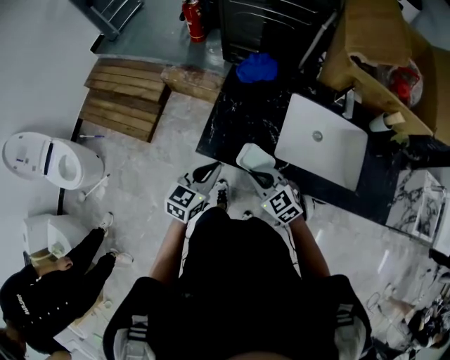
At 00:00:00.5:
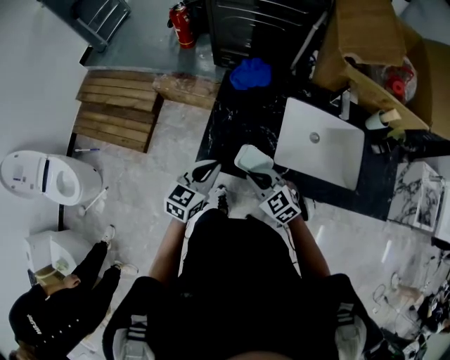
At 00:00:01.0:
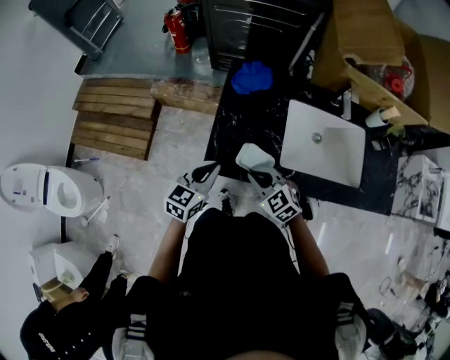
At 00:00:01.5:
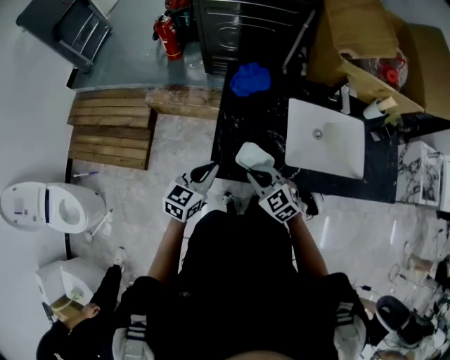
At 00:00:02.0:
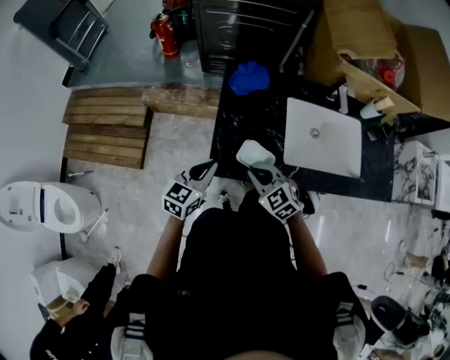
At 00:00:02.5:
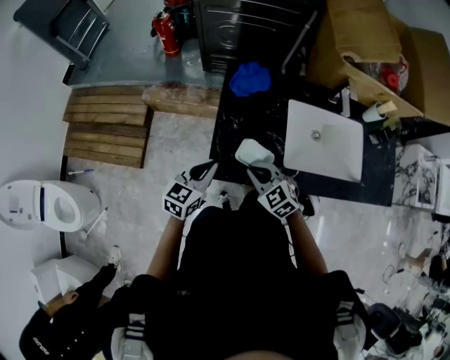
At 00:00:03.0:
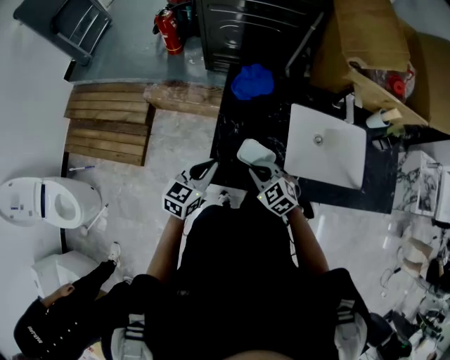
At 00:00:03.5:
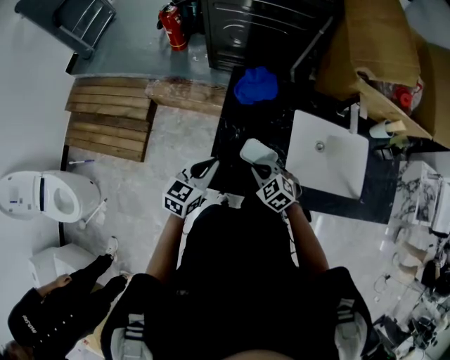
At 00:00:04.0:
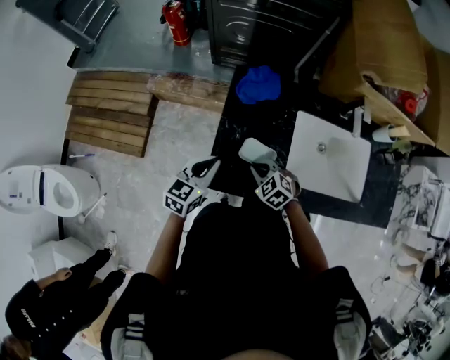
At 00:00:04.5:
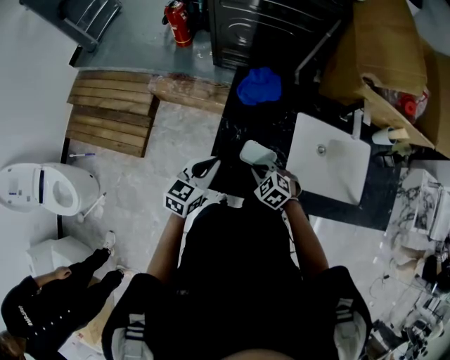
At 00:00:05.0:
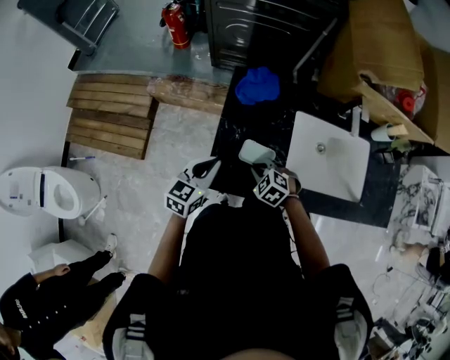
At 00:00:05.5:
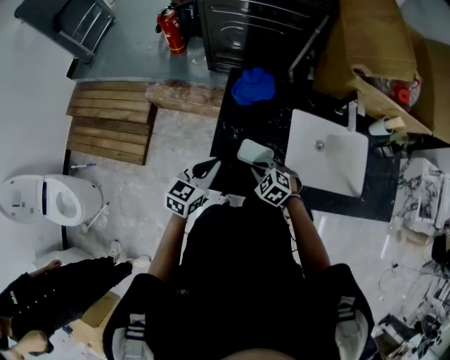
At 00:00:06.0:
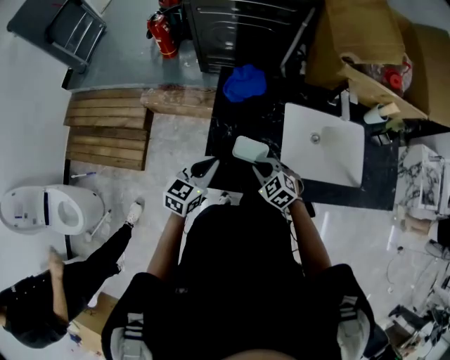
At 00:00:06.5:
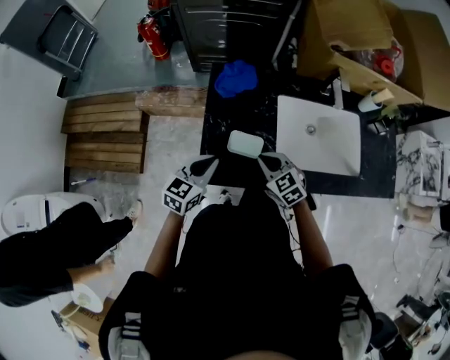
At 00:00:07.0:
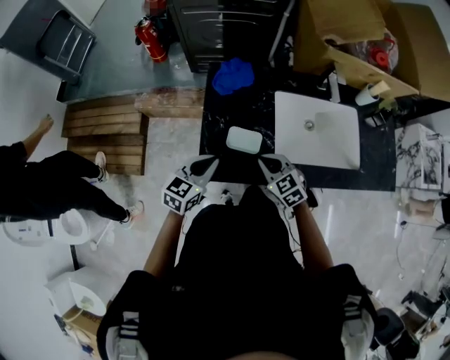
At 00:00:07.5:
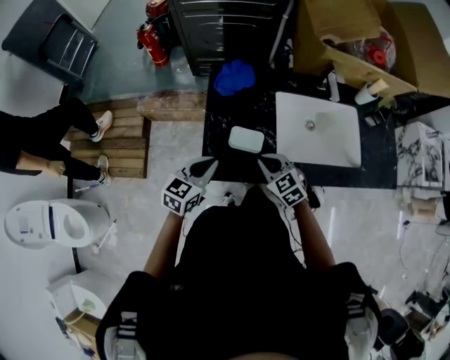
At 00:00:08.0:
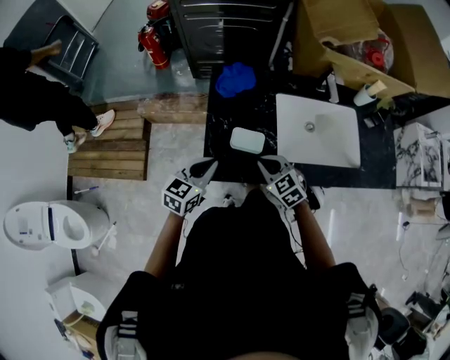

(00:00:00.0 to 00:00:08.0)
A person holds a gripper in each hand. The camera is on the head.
00:00:00.0 - 00:00:02.0: The grippers both shift forward and to the left by approximately 10 cm.
00:00:02.0 - 00:00:04.0: The right gripper travels downward and forward by some 10 cm. Meanwhile the left gripper heads forward, covering about 5 cm.
00:00:04.0 - 00:00:06.0: The grippers stay close to where they were, moving slightly.
00:00:06.0 - 00:00:08.0: The right gripper heads upward, covering roughly 5 cm.

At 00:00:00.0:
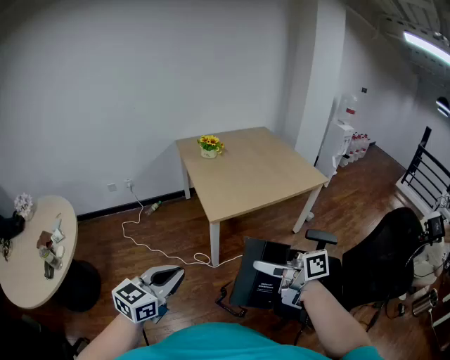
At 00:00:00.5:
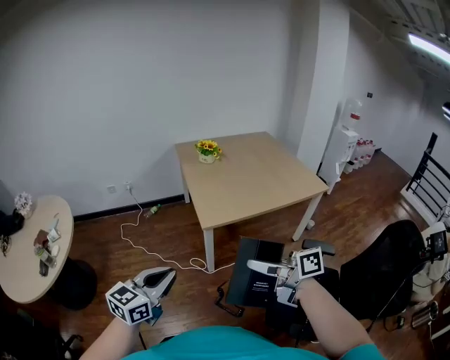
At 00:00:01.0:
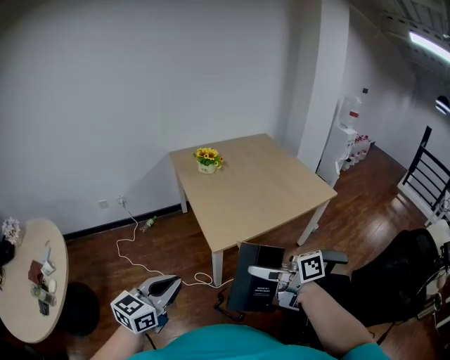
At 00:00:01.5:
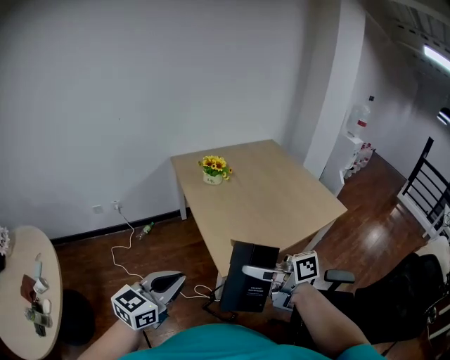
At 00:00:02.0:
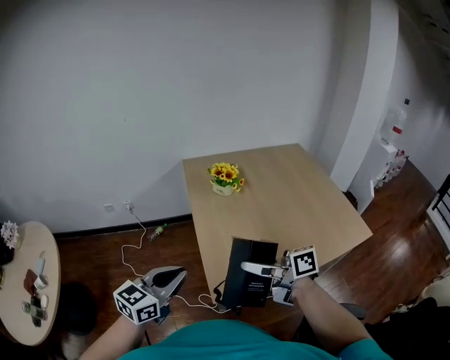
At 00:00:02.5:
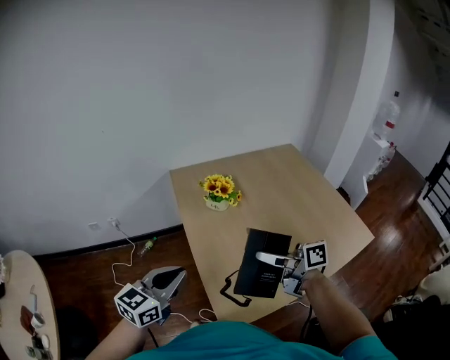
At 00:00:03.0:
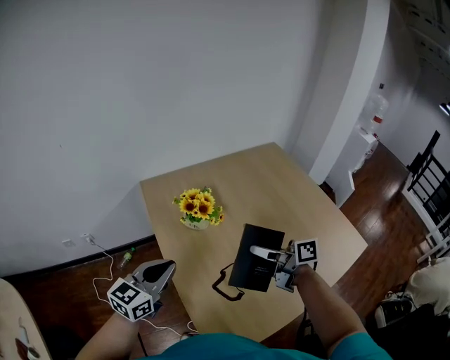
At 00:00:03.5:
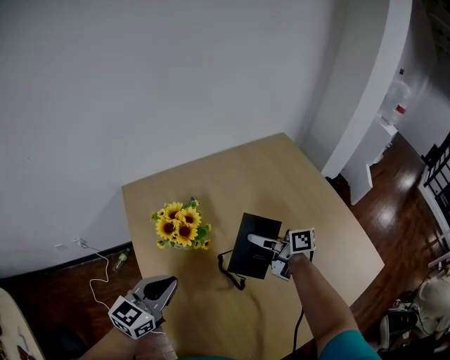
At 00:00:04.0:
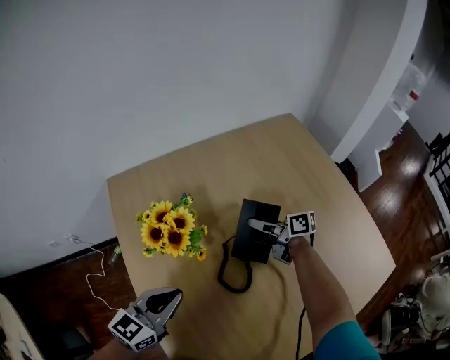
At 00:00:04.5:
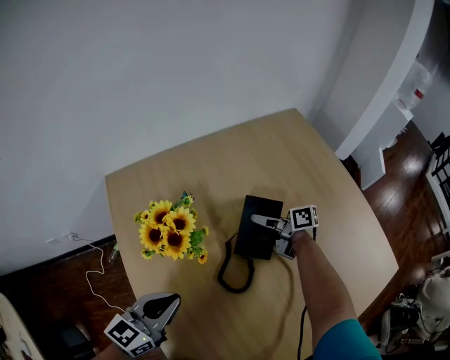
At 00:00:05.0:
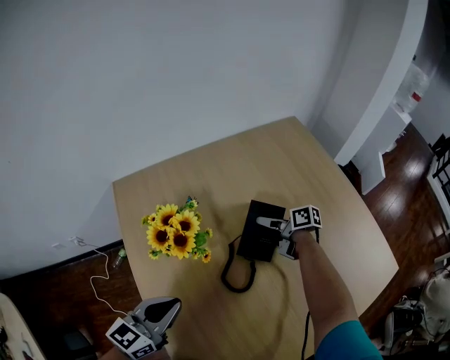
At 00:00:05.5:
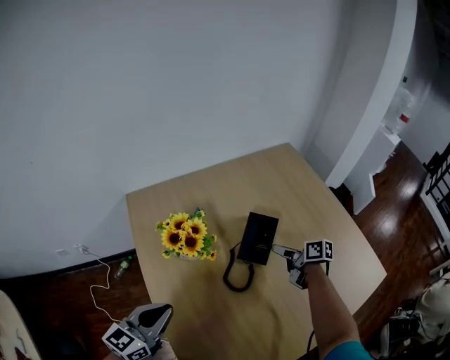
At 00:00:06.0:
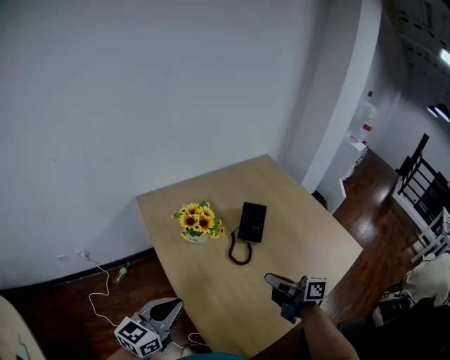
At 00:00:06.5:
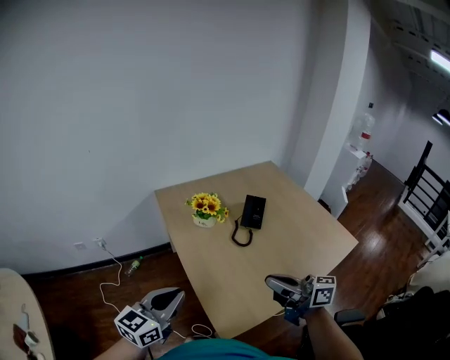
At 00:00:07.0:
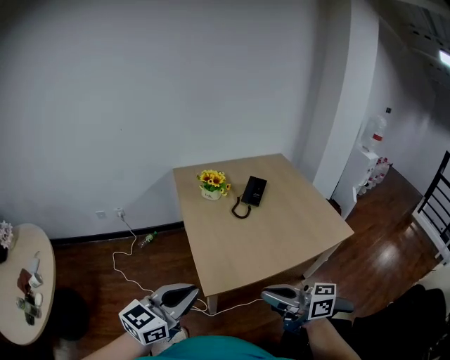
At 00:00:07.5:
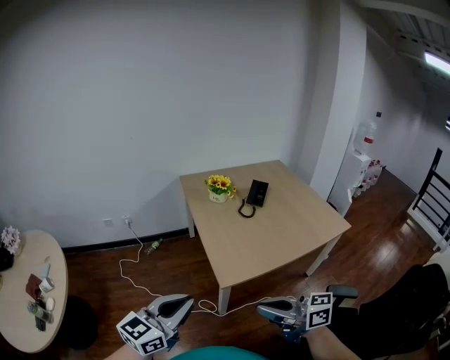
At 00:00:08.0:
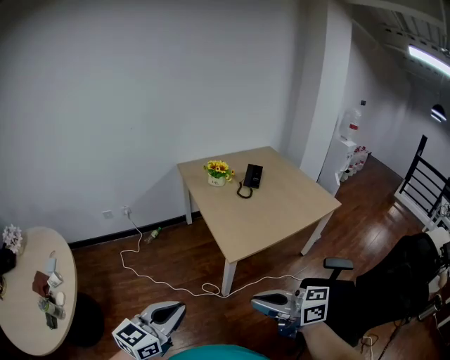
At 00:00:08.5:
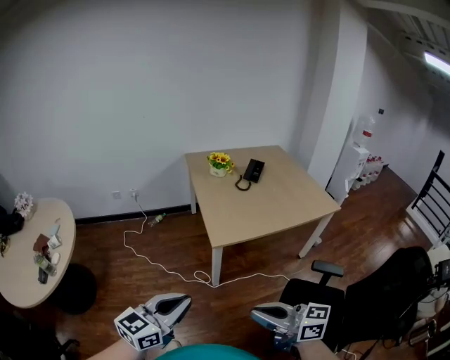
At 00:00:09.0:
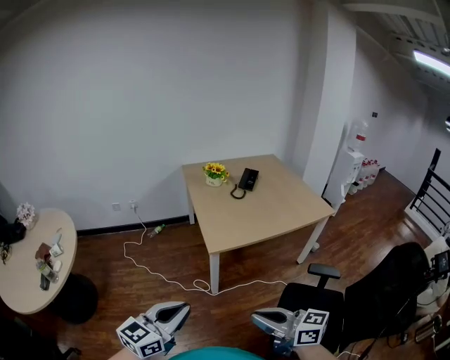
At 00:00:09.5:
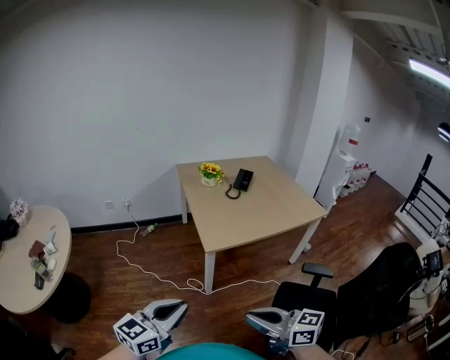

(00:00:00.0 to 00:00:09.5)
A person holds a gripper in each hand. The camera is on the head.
00:00:00.0 - 00:00:02.0: Both grippers are carried forward, roughly 40 cm.
00:00:02.0 - 00:00:04.0: The pair of grippers is taken forward and to the right, some 50 cm. The right gripper heads downward, covering approximately 25 cm, and turns by approximately 30 degrees.
00:00:04.0 - 00:00:05.5: The right gripper travels backward and to the right by about 10 cm, turns by roughly 20 degrees, and opens; the left gripper travels upward, backward and to the left by roughly 10 cm.
00:00:05.5 - 00:00:07.5: Both grippers are carried backward, some 70 cm. The right gripper rotates roughly 50 degrees, and closes.
00:00:07.5 - 00:00:09.5: The two grippers go about 25 cm backward.

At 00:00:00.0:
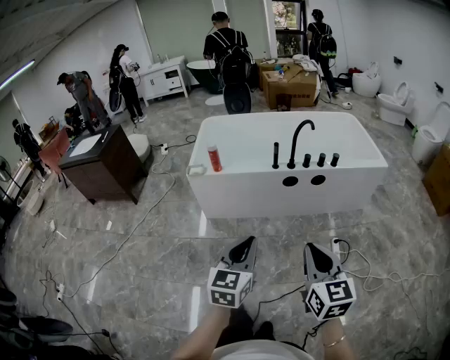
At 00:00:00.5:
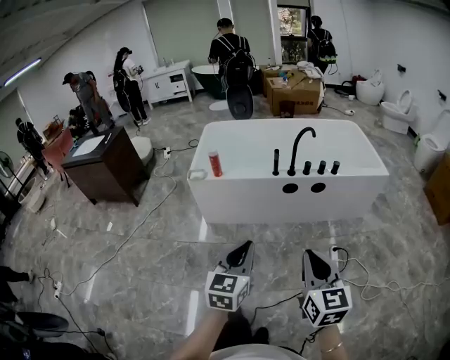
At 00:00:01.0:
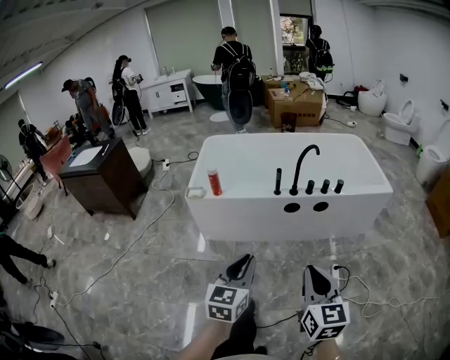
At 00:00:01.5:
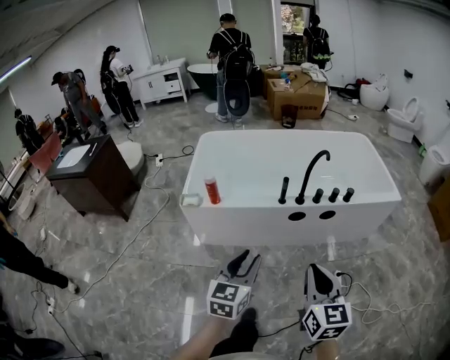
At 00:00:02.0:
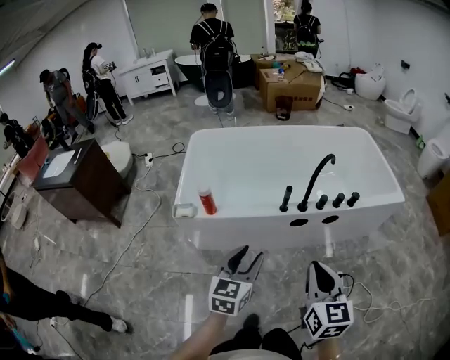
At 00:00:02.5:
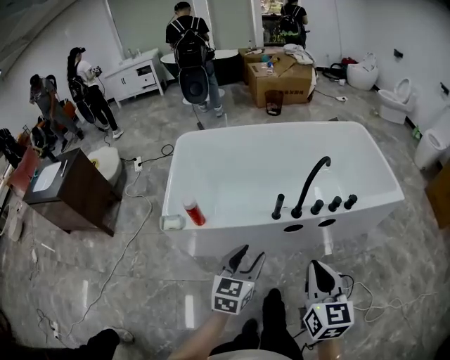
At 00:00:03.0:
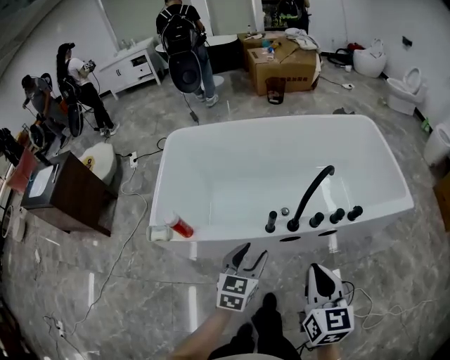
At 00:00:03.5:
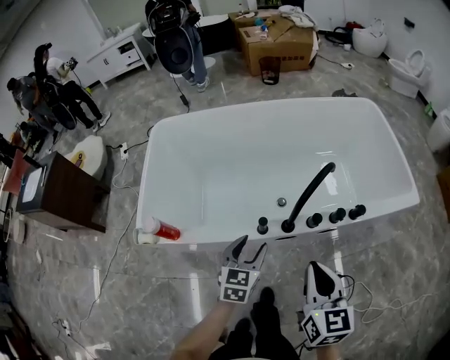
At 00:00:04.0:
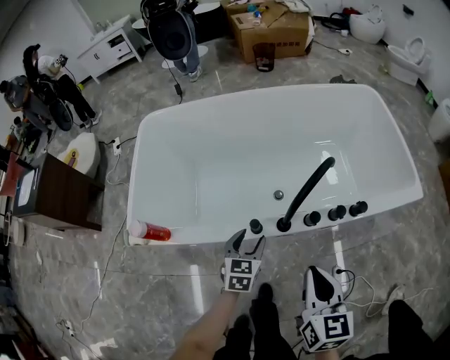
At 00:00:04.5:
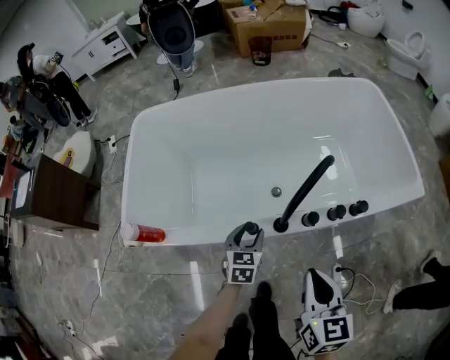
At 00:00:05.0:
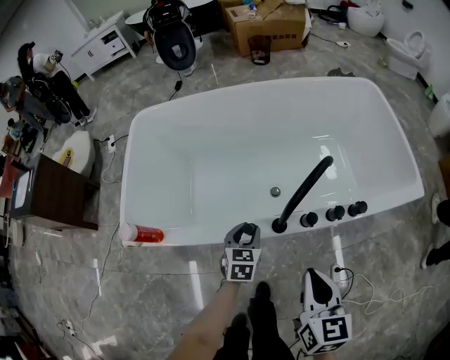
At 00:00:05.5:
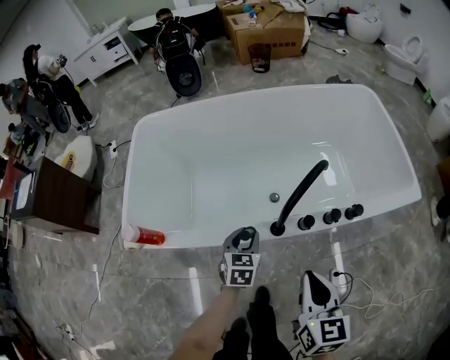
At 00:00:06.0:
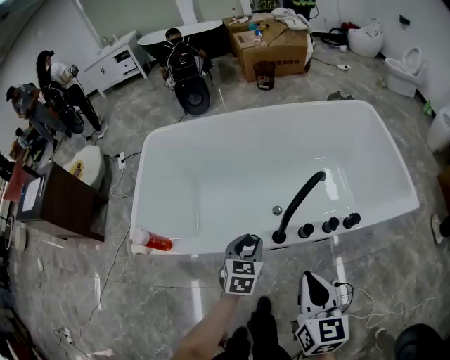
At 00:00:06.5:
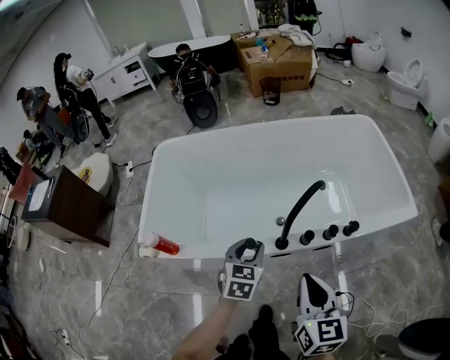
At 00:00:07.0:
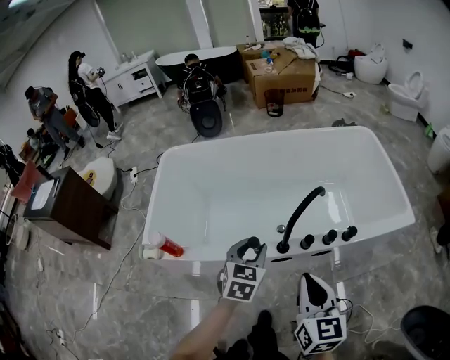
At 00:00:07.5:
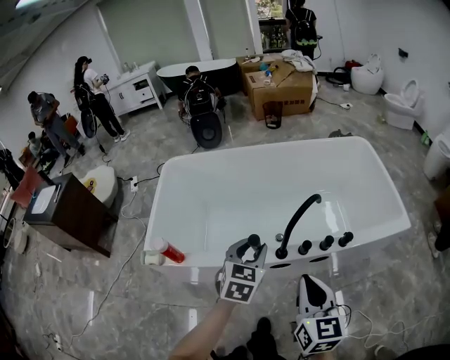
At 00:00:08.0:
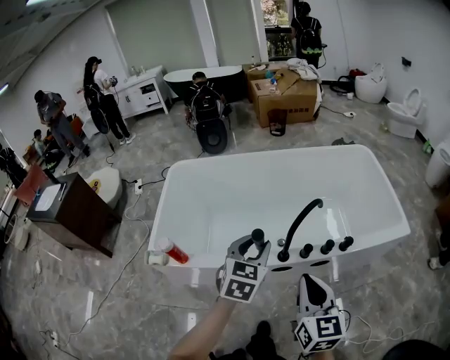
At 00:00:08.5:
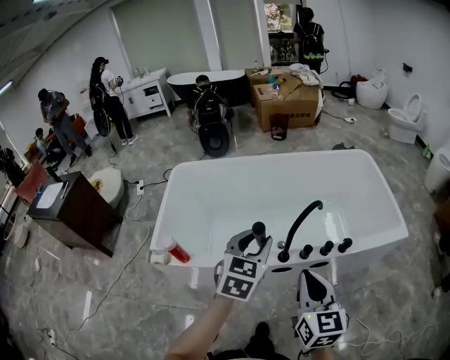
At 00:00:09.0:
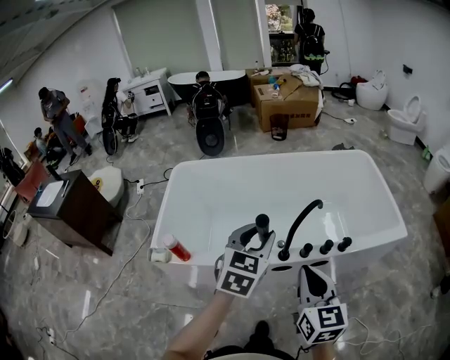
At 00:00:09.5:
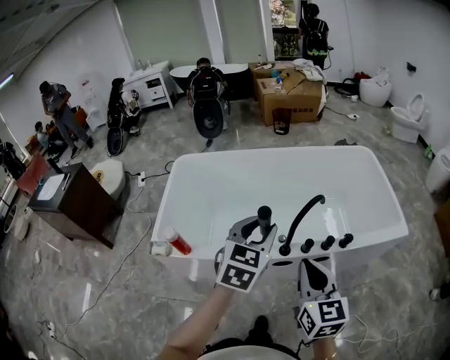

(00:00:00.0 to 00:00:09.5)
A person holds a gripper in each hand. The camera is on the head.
00:00:00.0 - 00:00:02.0: The two grippers travel together, forward, about 50 cm. The left gripper opens up.
00:00:02.0 - 00:00:04.0: The pair of grippers is taken forward, roughly 50 cm. The right gripper travels downward by roughly 20 cm; the left gripper is displaced downward by approximately 30 cm.
00:00:04.0 - 00:00:05.5: The left gripper closes up.
00:00:05.5 - 00:00:07.5: The left gripper travels upward and backward by roughly 30 cm; the right gripper shifts approximately 20 cm upward and backward.
00:00:07.5 - 00:00:09.5: The right gripper heads upward, covering some 5 cm. Meanwhile the left gripper shifts roughly 15 cm upward.
